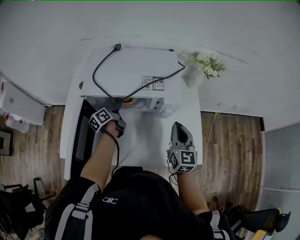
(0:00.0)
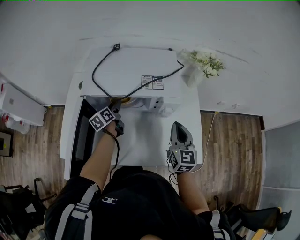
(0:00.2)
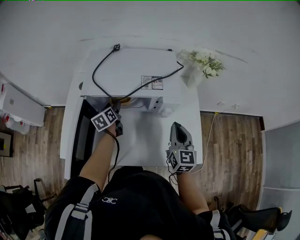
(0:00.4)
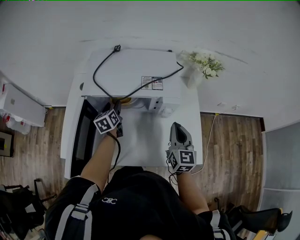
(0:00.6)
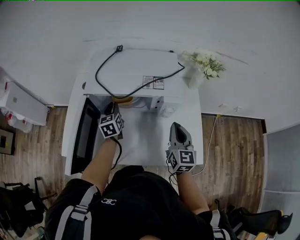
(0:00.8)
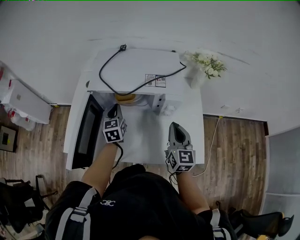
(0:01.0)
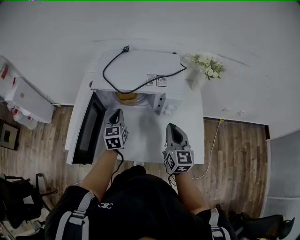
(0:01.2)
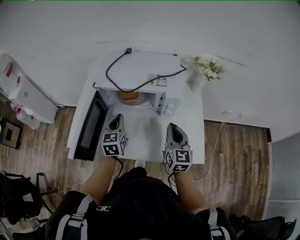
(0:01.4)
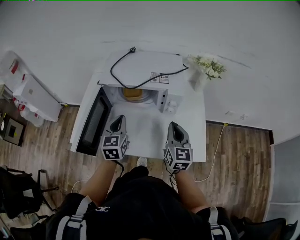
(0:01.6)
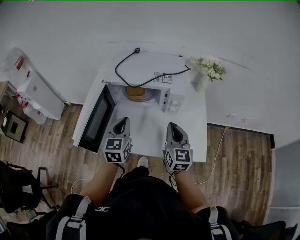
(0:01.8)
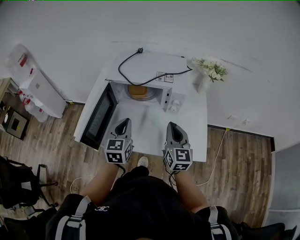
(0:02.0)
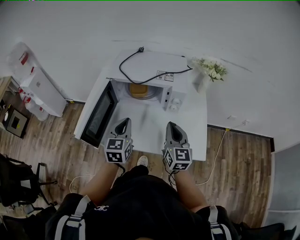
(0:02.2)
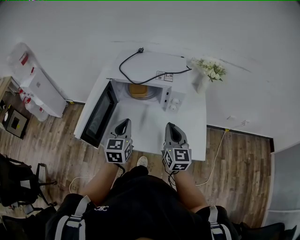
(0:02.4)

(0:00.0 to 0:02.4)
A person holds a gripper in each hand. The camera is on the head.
0:00.0 - 0:01.2: The right gripper moves approximately 5 cm, while the left gripper travels backward and upward by about 15 cm, twists about 60 degrees clockwise, seen from behind, and closes its fingers.
0:01.2 - 0:02.4: The left gripper shifts about 20 cm backward and upward. Meanwhile the right gripper travels backward by some 10 cm.

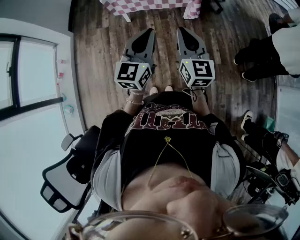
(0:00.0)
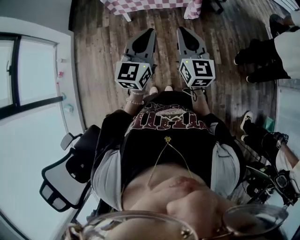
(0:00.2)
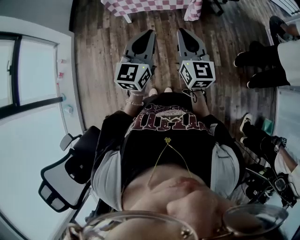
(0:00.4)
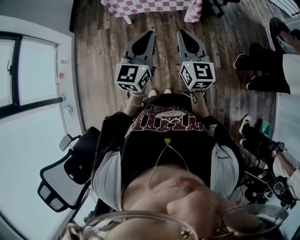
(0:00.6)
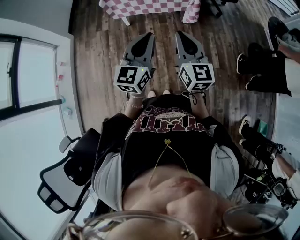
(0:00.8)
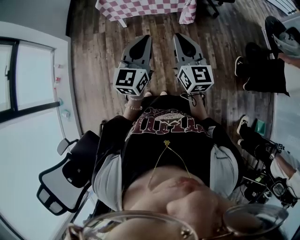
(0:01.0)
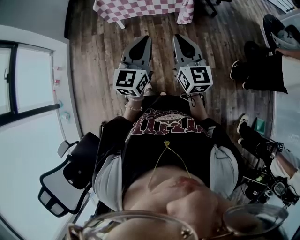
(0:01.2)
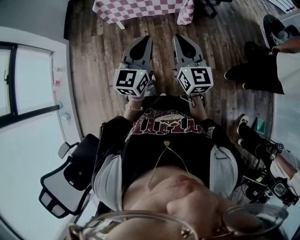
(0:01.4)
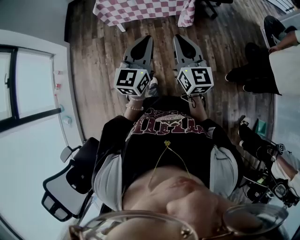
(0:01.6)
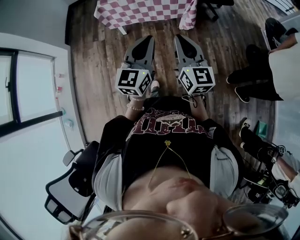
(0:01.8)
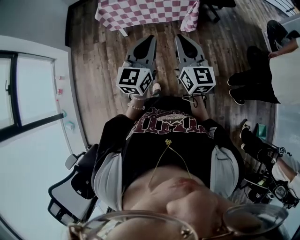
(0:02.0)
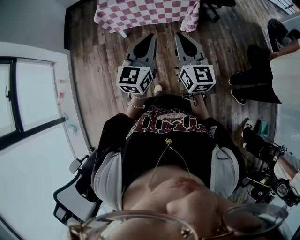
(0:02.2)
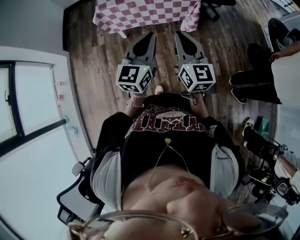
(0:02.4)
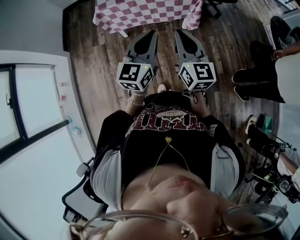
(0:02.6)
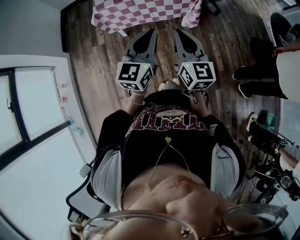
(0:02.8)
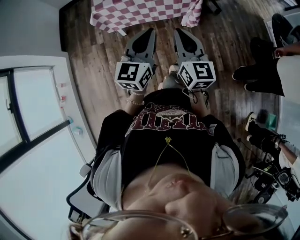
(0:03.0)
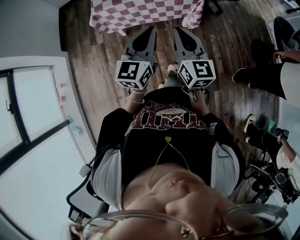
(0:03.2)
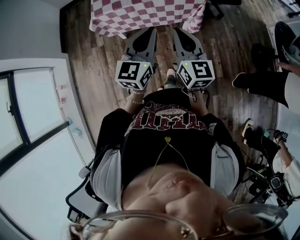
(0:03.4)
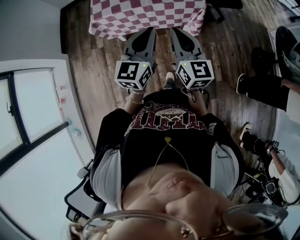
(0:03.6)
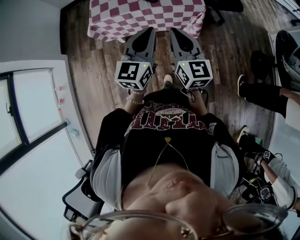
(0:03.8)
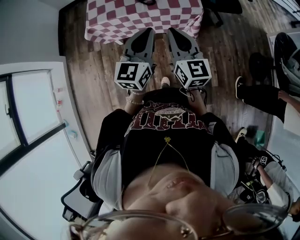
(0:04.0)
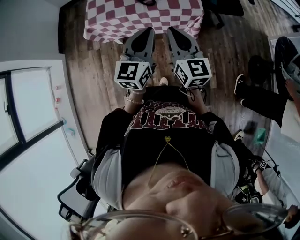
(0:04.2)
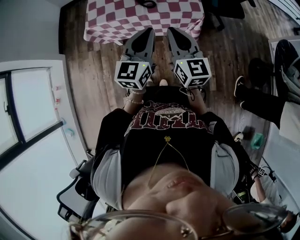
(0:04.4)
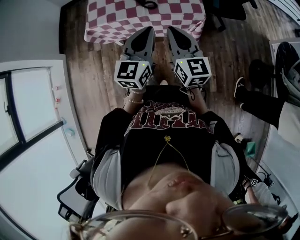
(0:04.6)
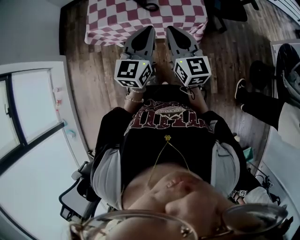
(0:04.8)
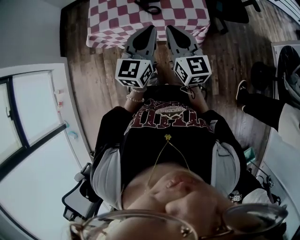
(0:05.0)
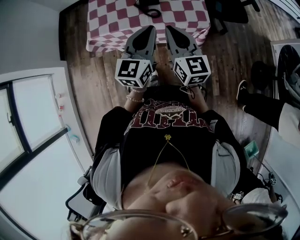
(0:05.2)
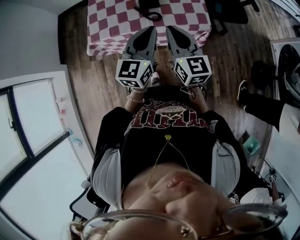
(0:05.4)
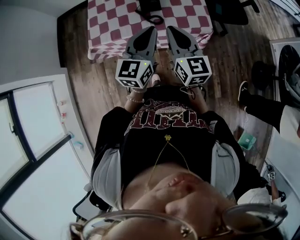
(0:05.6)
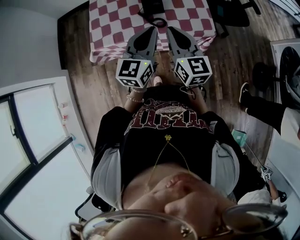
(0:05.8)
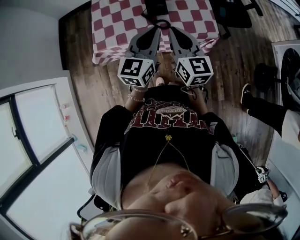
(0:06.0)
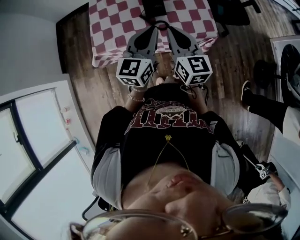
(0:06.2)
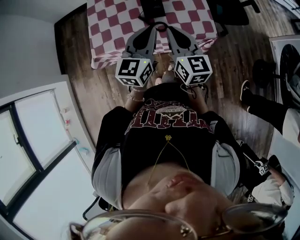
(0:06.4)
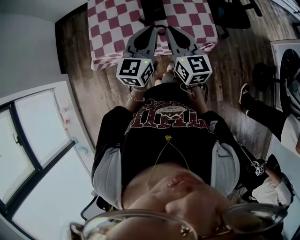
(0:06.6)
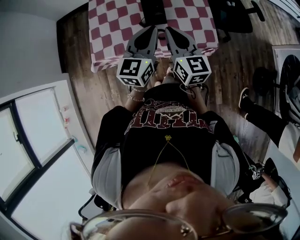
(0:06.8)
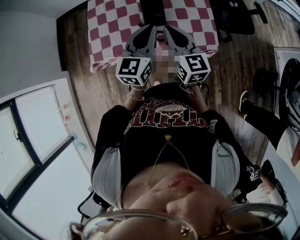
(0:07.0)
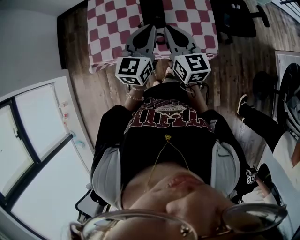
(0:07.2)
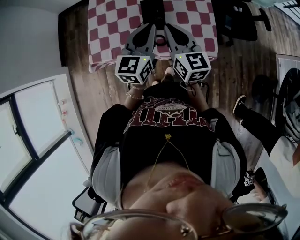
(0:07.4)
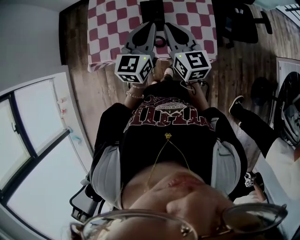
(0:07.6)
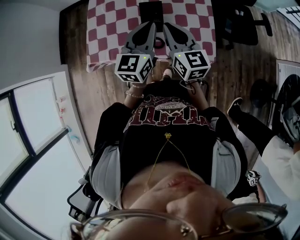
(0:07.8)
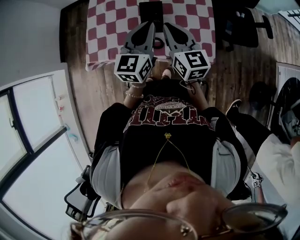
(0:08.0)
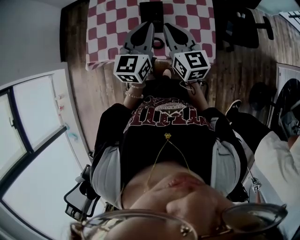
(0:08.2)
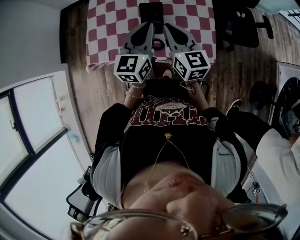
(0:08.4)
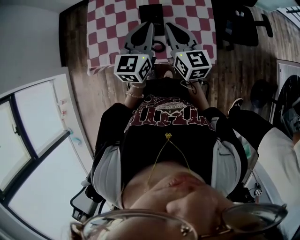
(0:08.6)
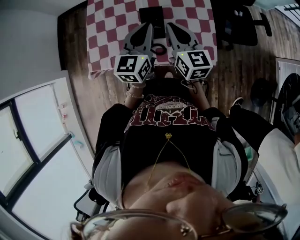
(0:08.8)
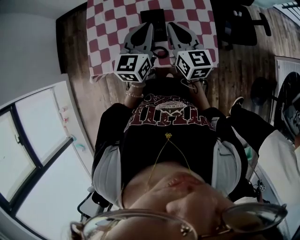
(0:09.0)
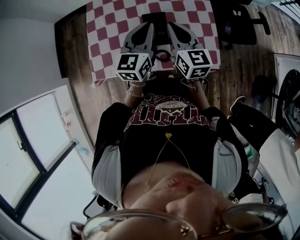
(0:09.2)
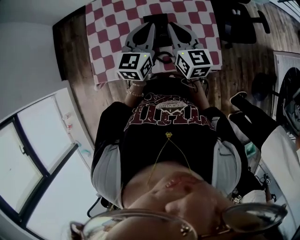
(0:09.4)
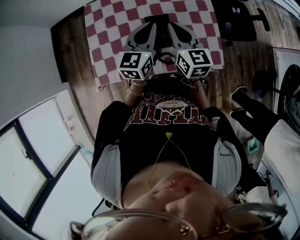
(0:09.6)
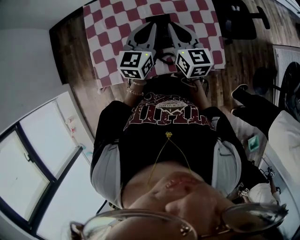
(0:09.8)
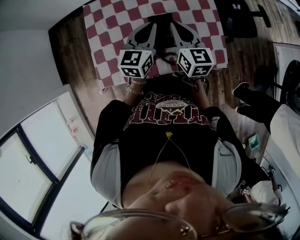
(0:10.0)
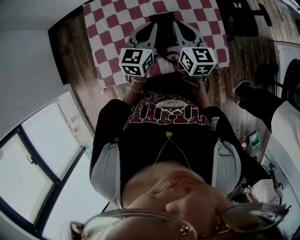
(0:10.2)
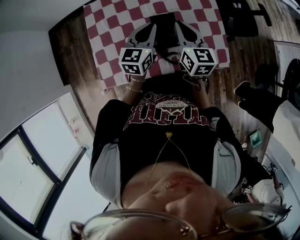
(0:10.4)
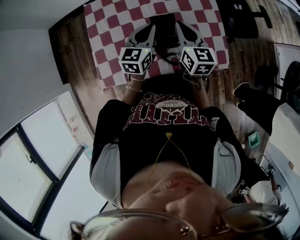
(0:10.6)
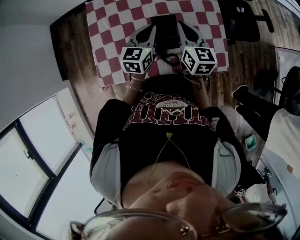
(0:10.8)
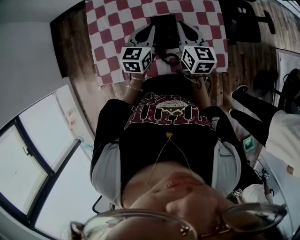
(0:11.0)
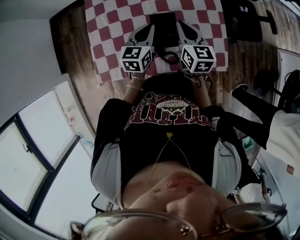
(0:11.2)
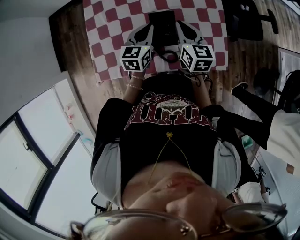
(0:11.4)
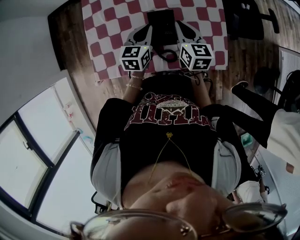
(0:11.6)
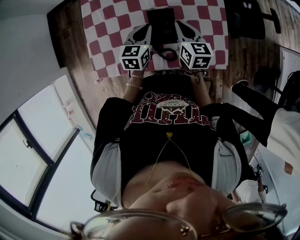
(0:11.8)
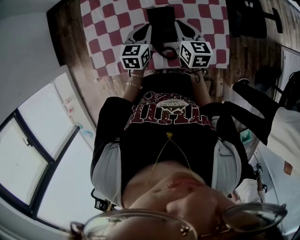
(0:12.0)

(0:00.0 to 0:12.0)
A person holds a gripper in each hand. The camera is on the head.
0:00.0 - 0:01.6: The left gripper shifts approximately 5 cm forward; the right gripper changes place by about 5 cm.
0:01.6 - 0:03.0: The left gripper shifts approximately 20 cm forward, while the right gripper is displaced forward and to the left by roughly 20 cm.
0:03.0 - 0:04.4: Both grippers move forward, approximately 20 cm.
0:04.4 - 0:06.0: The left gripper shifts approximately 20 cm forward. The right gripper is displaced forward and to the left by approximately 20 cm.
0:06.0 - 0:07.6: The two grippers go some 15 cm forward.
0:07.6 - 0:09.0: The two grippers go some 5 cm forward.
0:09.0 - 0:10.4: The left gripper travels downward, forward and to the left by approximately 10 cm, while the right gripper heads forward, covering roughly 5 cm.
0:10.4 - 0:12.0: The two grippers go some 10 cm downward.

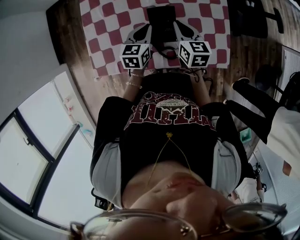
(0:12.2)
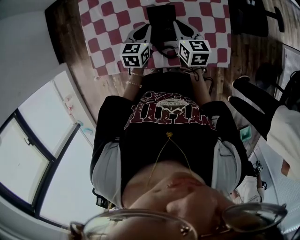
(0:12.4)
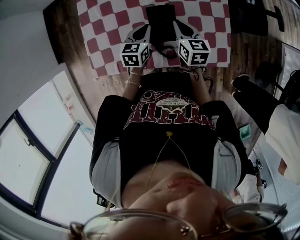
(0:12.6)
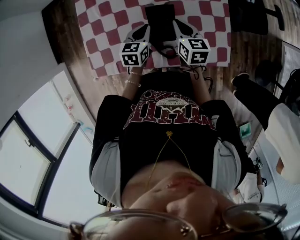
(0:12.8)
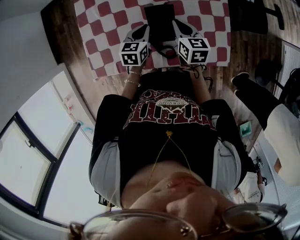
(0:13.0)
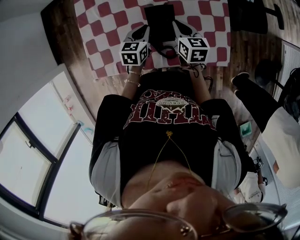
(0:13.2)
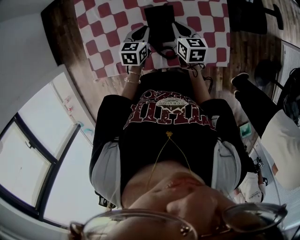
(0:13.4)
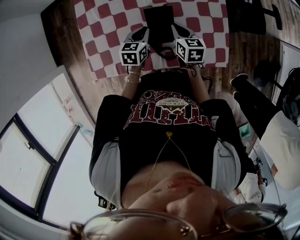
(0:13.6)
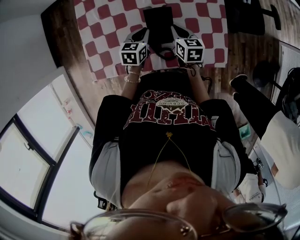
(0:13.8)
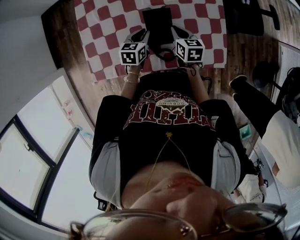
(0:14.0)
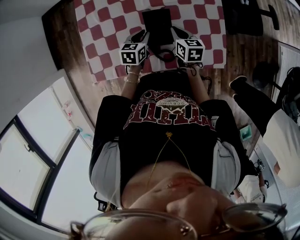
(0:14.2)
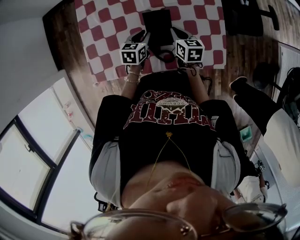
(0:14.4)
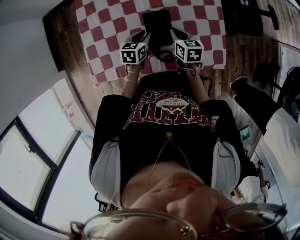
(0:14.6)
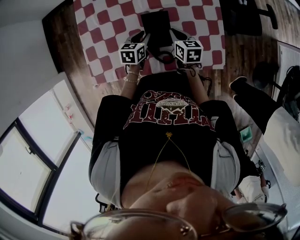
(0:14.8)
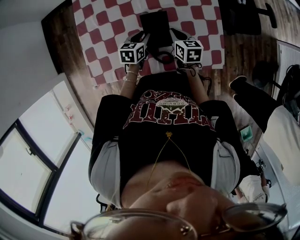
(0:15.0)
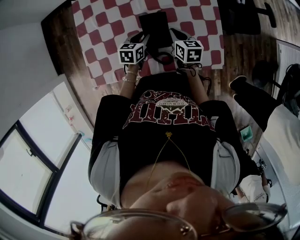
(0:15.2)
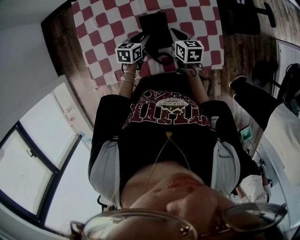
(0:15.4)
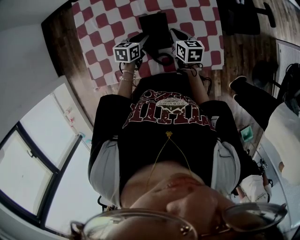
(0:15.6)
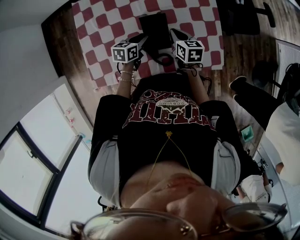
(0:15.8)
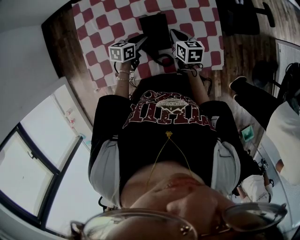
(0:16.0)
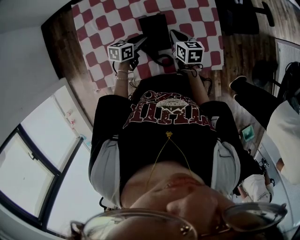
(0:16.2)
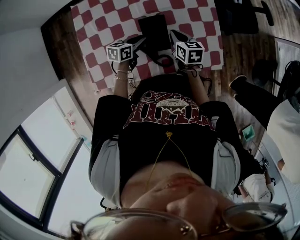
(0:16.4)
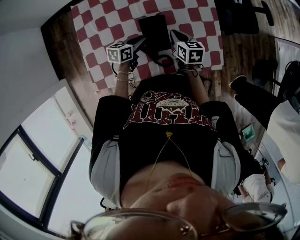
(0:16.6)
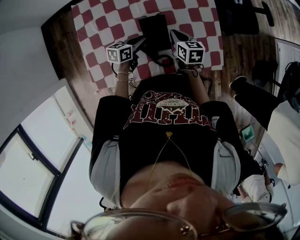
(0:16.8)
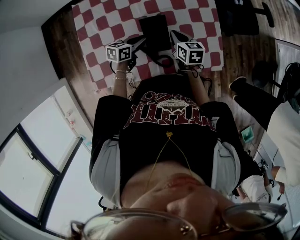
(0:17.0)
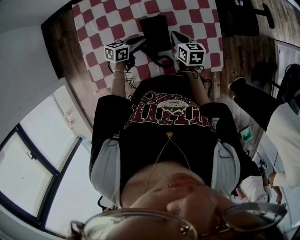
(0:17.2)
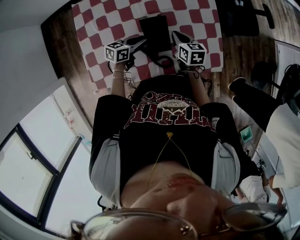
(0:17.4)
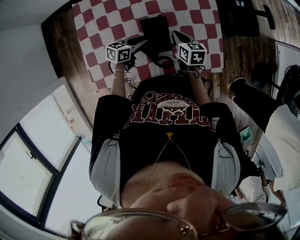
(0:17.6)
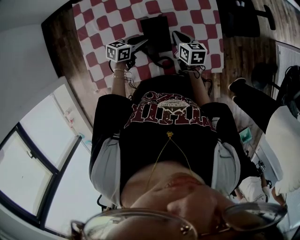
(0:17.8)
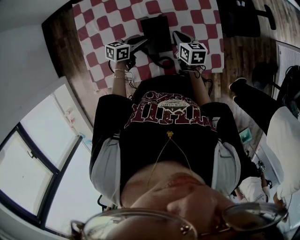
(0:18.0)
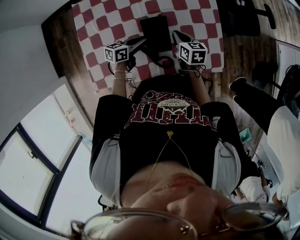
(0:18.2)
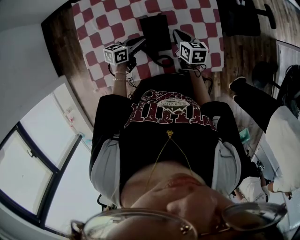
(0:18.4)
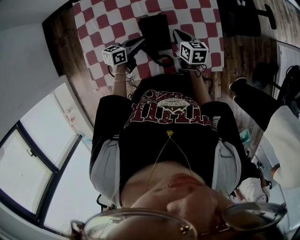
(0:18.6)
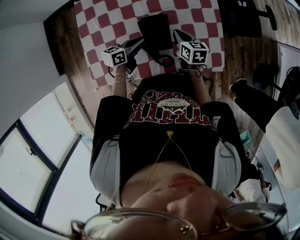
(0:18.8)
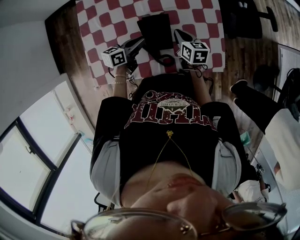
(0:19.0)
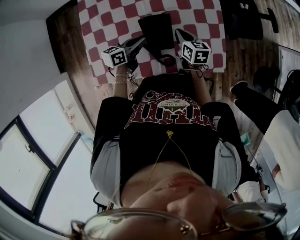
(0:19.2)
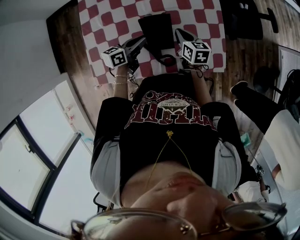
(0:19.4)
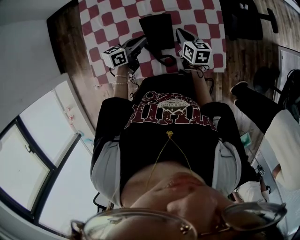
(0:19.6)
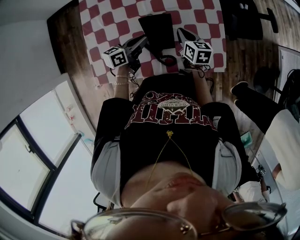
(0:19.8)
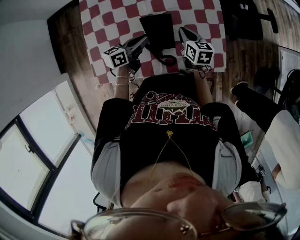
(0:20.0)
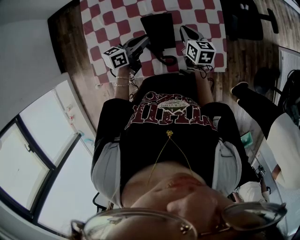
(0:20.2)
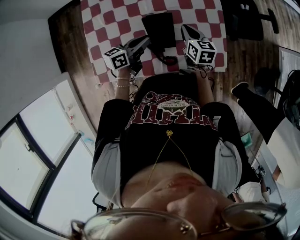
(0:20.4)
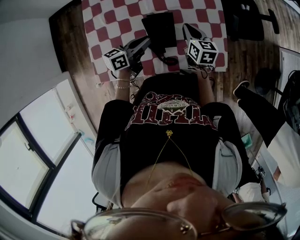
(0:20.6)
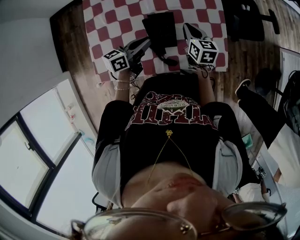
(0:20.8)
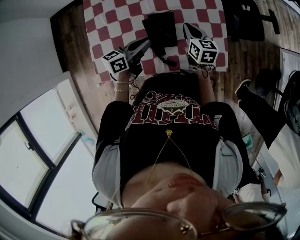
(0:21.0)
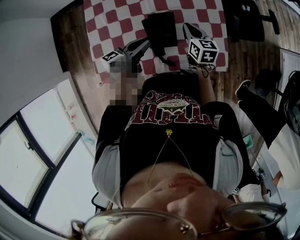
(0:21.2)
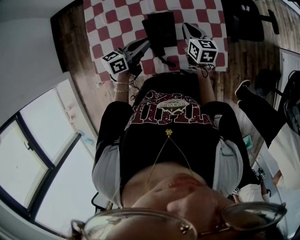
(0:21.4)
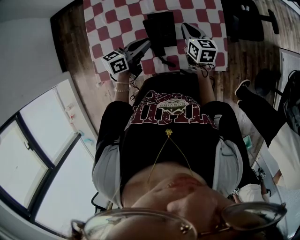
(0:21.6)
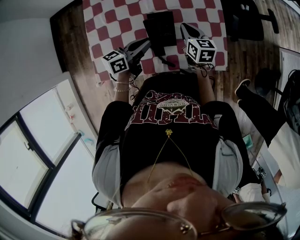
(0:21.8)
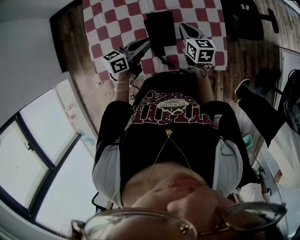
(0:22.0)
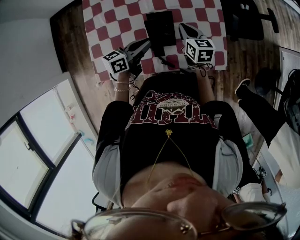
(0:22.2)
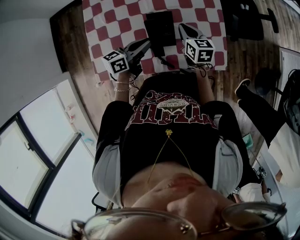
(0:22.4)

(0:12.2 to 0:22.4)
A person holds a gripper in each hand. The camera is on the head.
0:12.2 - 0:13.6: The grippers both shift downward by some 5 cm.
0:13.6 - 0:15.2: The left gripper opens up.
0:15.2 - 0:16.6: The grippers stay close to where they were, moving slightly.
0:16.6 - 0:18.0: There are only small adjustments of the grippers.
0:18.0 - 0:19.4: The left gripper shifts roughly 5 cm upward.
0:19.4 - 0:21.0: The left gripper travels upward by some 5 cm.
0:21.0 - 0:22.4: The grippers move only a little.
